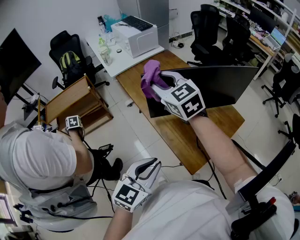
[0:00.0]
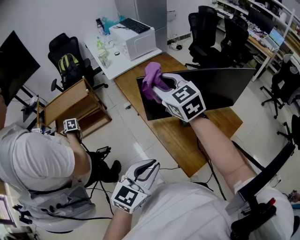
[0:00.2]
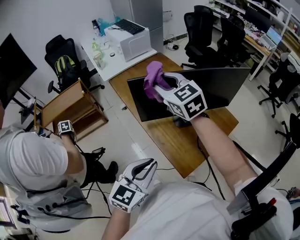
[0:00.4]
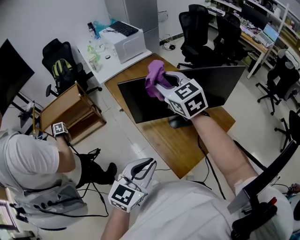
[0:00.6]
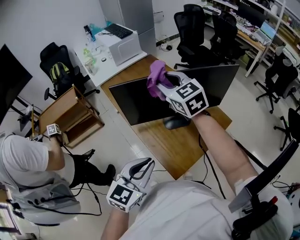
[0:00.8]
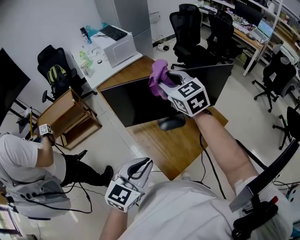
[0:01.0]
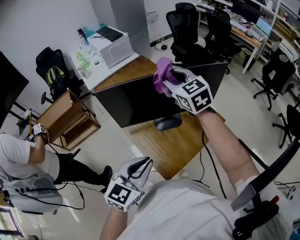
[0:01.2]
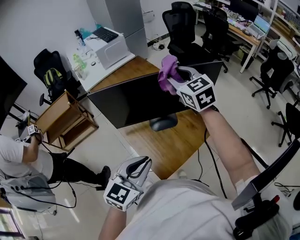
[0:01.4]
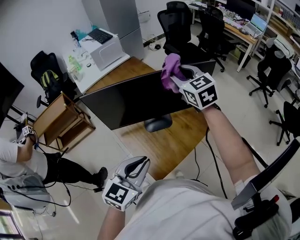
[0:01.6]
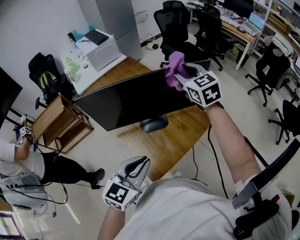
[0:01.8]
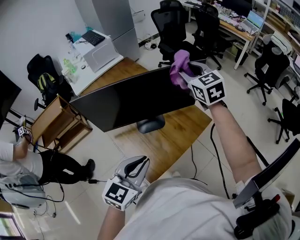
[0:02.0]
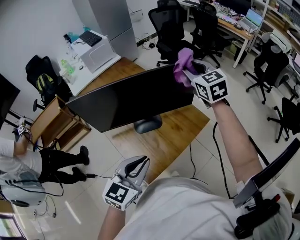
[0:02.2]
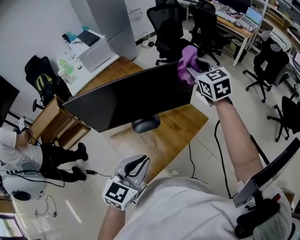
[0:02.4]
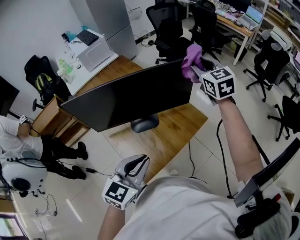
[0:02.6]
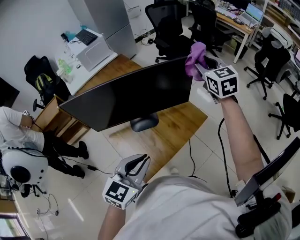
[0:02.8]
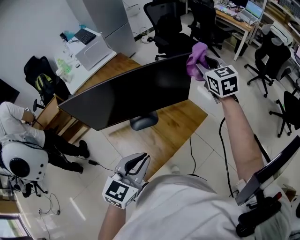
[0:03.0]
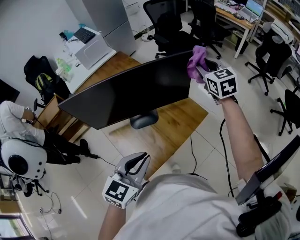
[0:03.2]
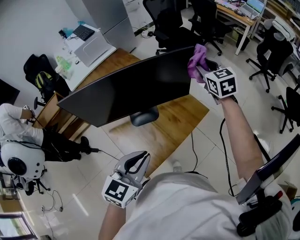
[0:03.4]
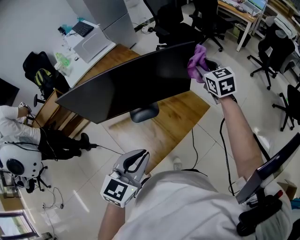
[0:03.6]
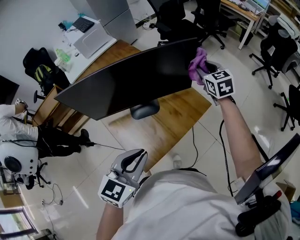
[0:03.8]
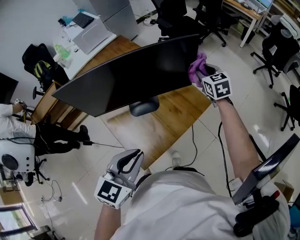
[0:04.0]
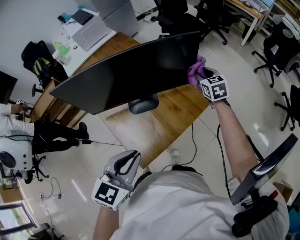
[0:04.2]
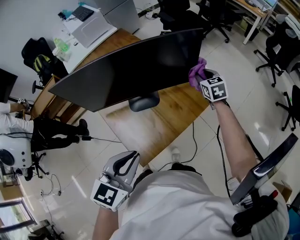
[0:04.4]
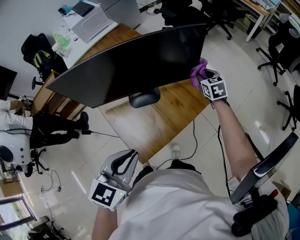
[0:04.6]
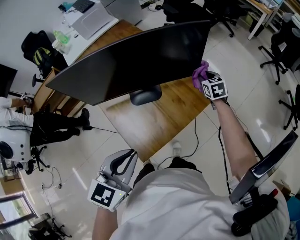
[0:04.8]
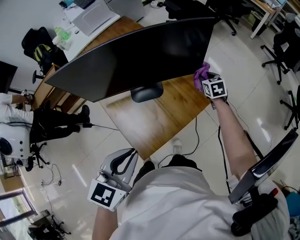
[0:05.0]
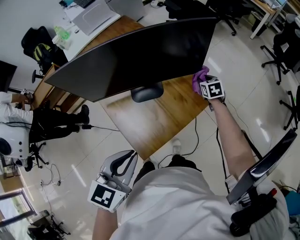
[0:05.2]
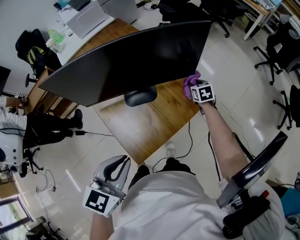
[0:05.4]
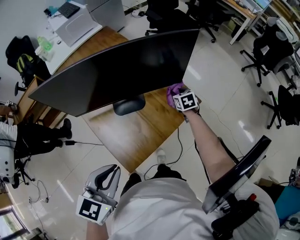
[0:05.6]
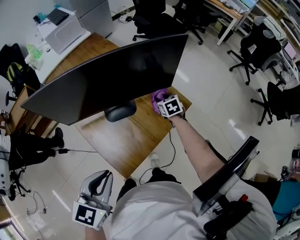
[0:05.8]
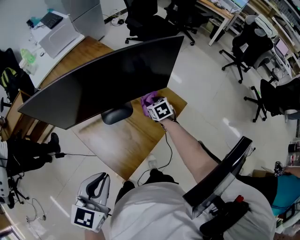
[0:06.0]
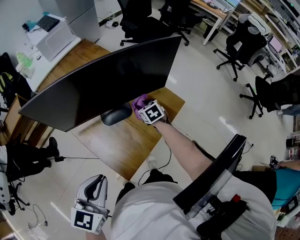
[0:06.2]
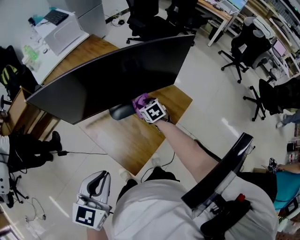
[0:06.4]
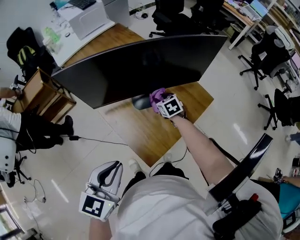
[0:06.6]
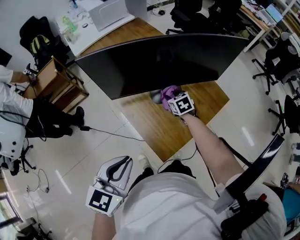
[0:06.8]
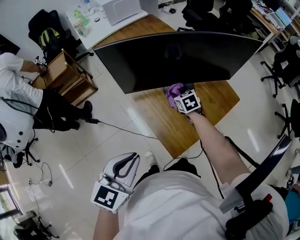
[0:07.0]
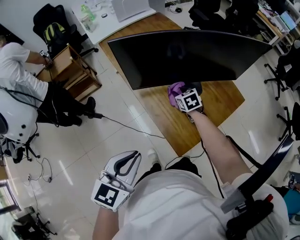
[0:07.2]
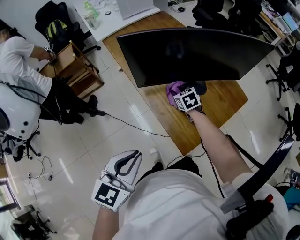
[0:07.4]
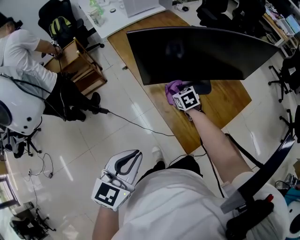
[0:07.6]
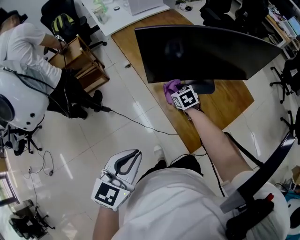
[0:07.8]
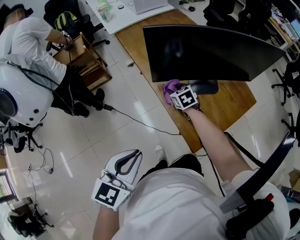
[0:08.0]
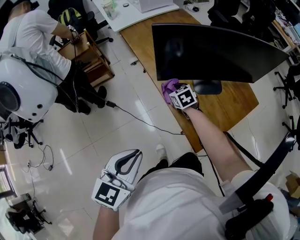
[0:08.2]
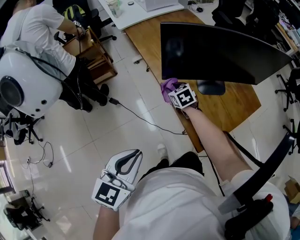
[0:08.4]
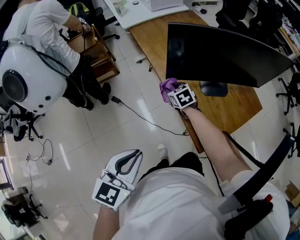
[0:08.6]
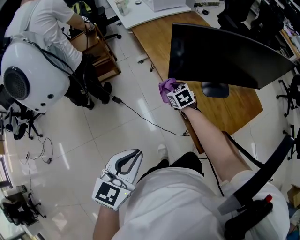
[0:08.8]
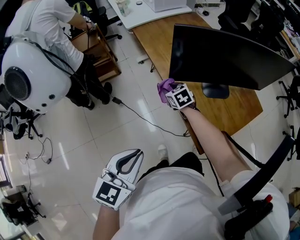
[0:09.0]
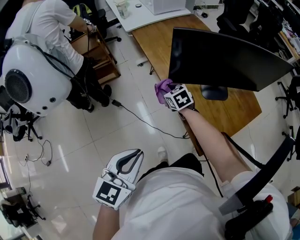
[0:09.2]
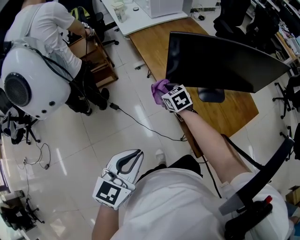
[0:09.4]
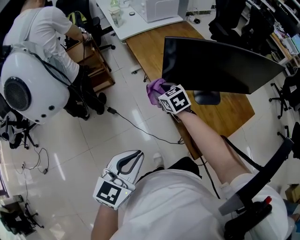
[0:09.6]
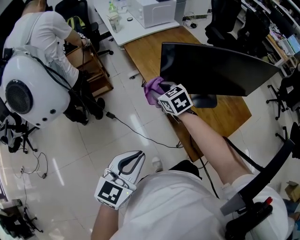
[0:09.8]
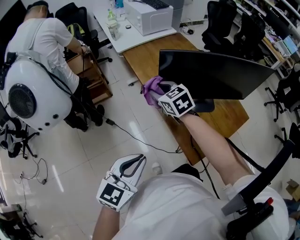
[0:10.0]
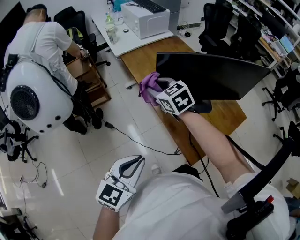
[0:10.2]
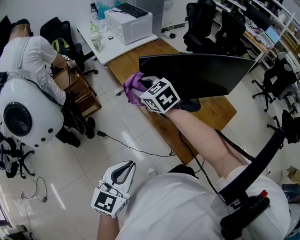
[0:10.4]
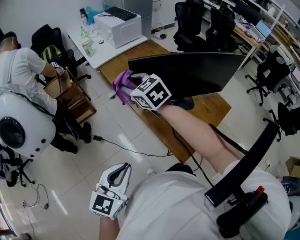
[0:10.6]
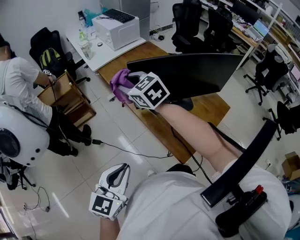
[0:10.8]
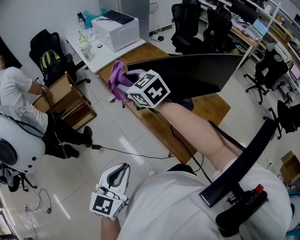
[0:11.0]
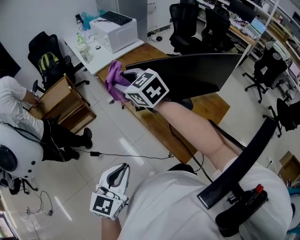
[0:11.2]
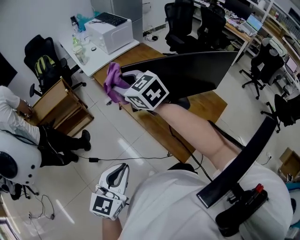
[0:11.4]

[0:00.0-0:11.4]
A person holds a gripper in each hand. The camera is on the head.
0:00.0 to 0:01.4: The right gripper travels to the right by roughly 25 cm, while the left gripper heads to the right, covering roughly 15 cm.
0:01.4 to 0:02.8: The left gripper goes some 10 cm to the right, while the right gripper heads to the right, covering approximately 25 cm.
0:02.8 to 0:04.2: The right gripper shifts about 20 cm downward.
0:04.2 to 0:05.6: The right gripper heads downward, covering some 20 cm, and changes its angle by some 20 degrees.
0:05.6 to 0:07.2: The left gripper moves to the left, approximately 15 cm; the right gripper travels to the left by approximately 30 cm.
0:07.2 to 0:08.6: The left gripper heads to the left, covering some 10 cm. Meanwhile the right gripper goes some 20 cm to the left.
0:08.6 to 0:10.0: The right gripper is displaced upward by roughly 20 cm.
0:10.0 to 0:11.4: The right gripper goes approximately 15 cm upward.

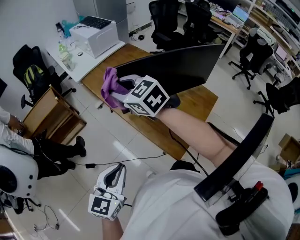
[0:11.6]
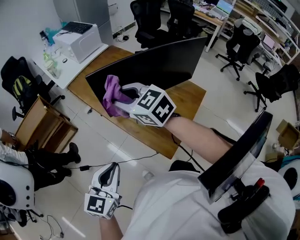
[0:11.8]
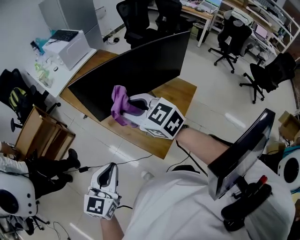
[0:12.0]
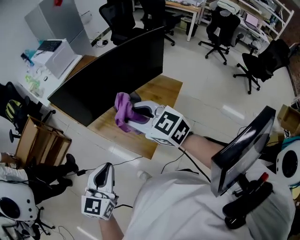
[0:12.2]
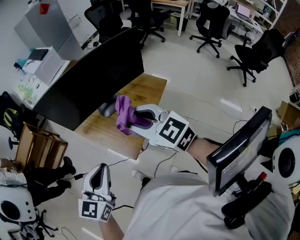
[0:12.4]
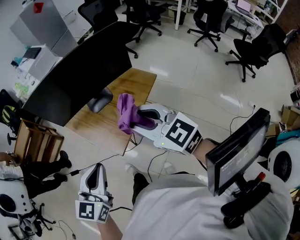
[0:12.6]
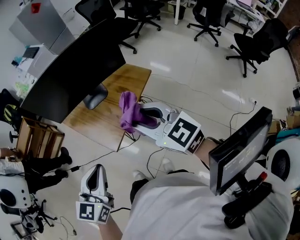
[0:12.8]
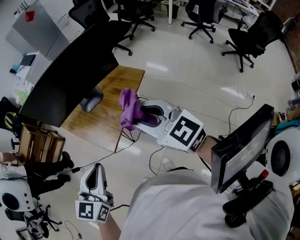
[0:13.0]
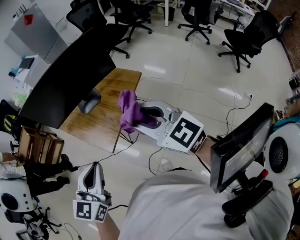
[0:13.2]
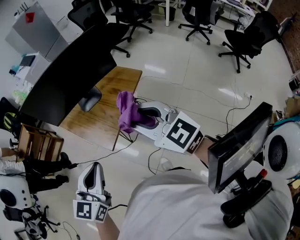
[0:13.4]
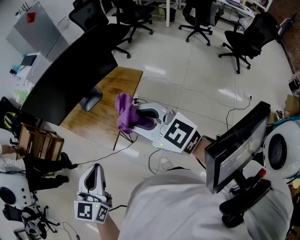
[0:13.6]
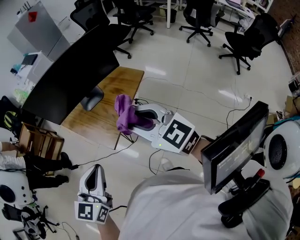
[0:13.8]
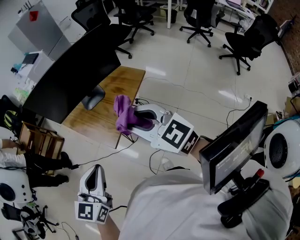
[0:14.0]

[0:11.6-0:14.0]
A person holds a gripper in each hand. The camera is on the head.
0:11.6 to 0:12.8: The right gripper heads to the right and backward, covering approximately 50 cm. Meanwhile the left gripper moves to the right, about 25 cm.
0:12.8 to 0:14.0: The grippers make only small movements.

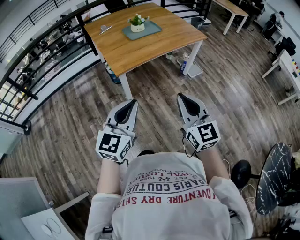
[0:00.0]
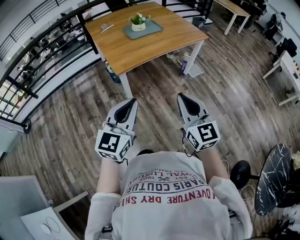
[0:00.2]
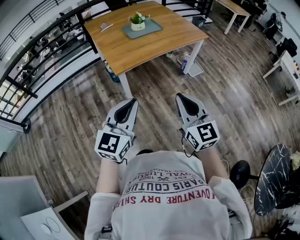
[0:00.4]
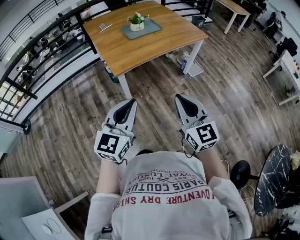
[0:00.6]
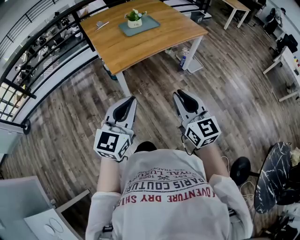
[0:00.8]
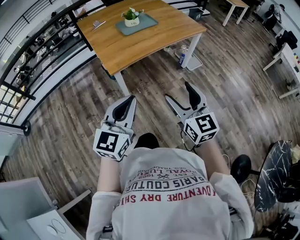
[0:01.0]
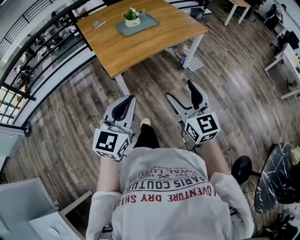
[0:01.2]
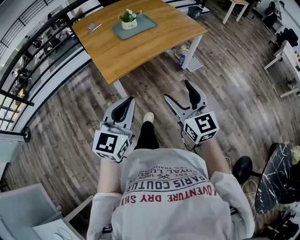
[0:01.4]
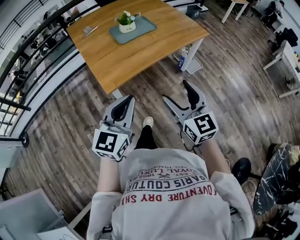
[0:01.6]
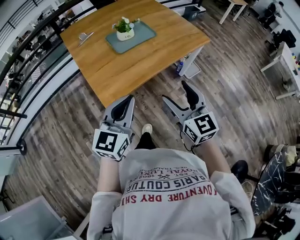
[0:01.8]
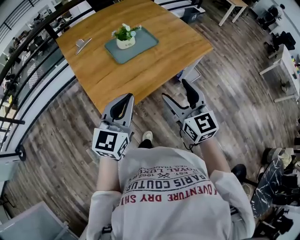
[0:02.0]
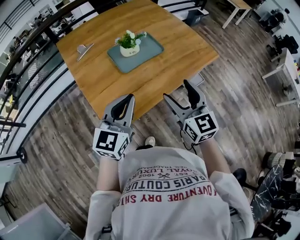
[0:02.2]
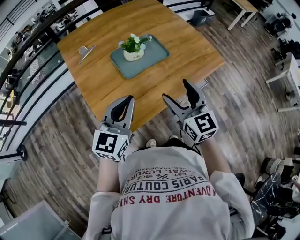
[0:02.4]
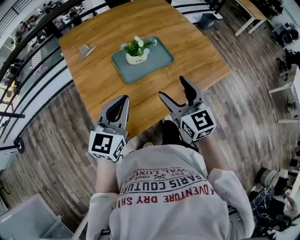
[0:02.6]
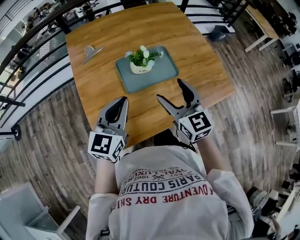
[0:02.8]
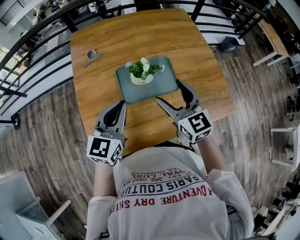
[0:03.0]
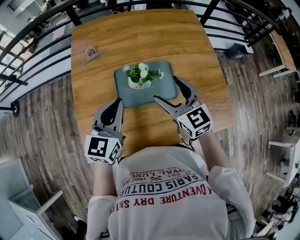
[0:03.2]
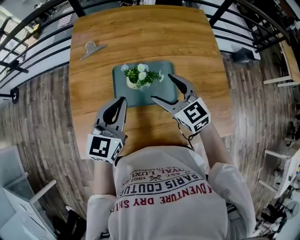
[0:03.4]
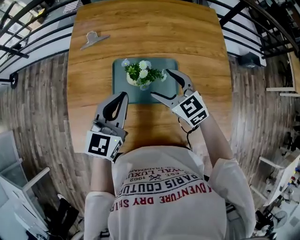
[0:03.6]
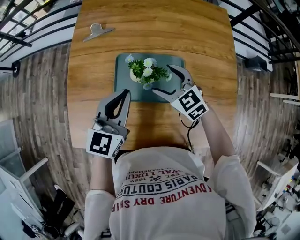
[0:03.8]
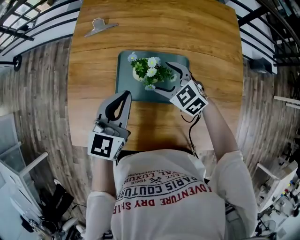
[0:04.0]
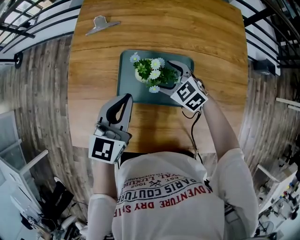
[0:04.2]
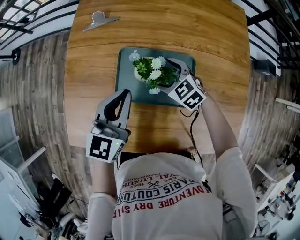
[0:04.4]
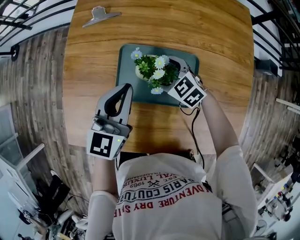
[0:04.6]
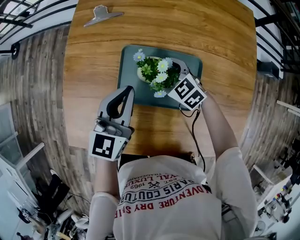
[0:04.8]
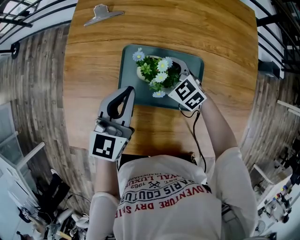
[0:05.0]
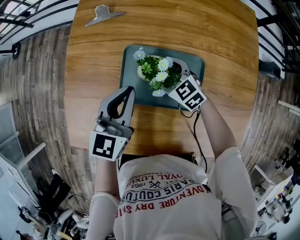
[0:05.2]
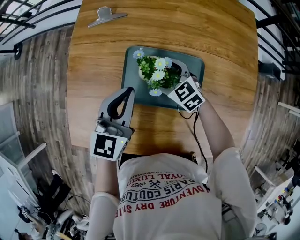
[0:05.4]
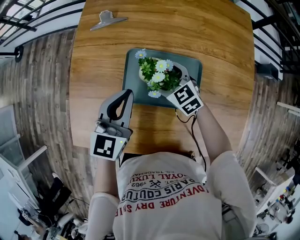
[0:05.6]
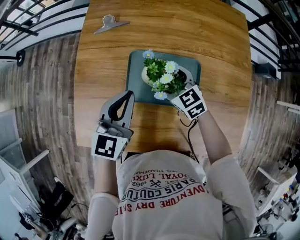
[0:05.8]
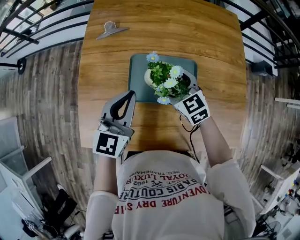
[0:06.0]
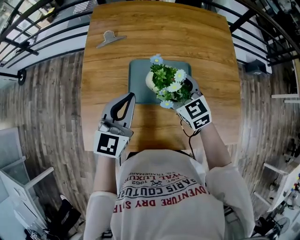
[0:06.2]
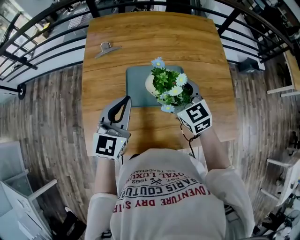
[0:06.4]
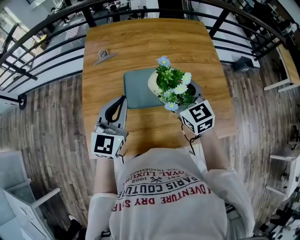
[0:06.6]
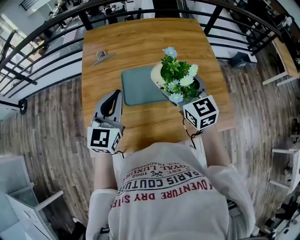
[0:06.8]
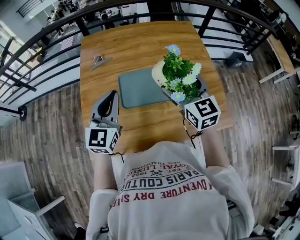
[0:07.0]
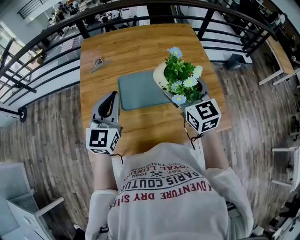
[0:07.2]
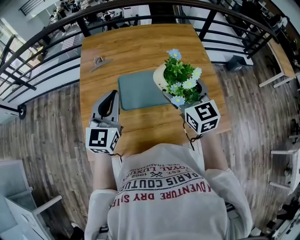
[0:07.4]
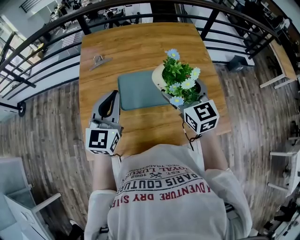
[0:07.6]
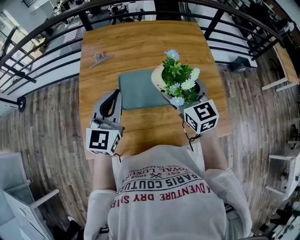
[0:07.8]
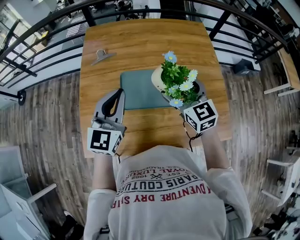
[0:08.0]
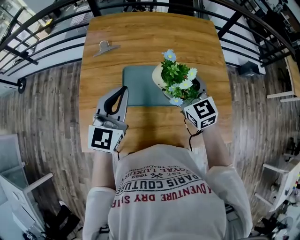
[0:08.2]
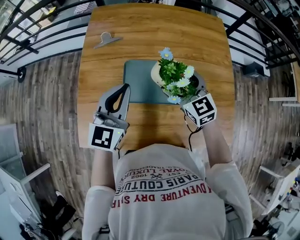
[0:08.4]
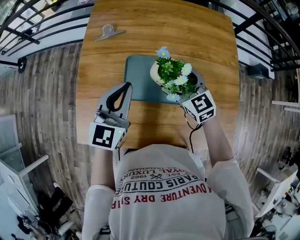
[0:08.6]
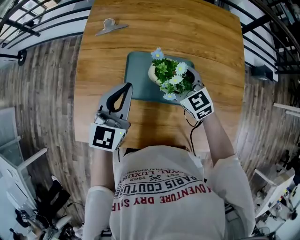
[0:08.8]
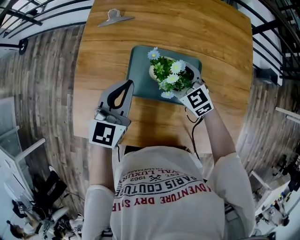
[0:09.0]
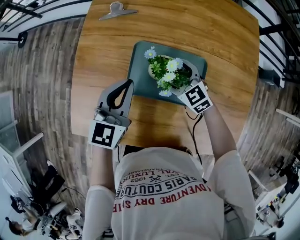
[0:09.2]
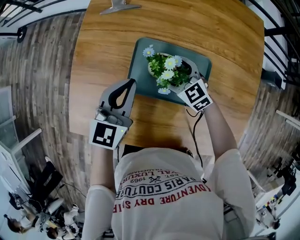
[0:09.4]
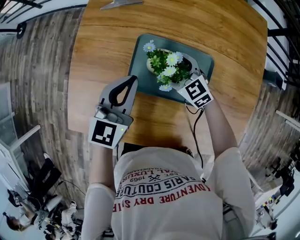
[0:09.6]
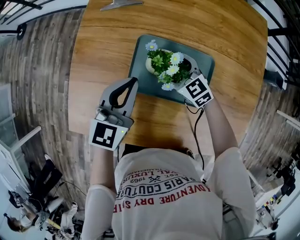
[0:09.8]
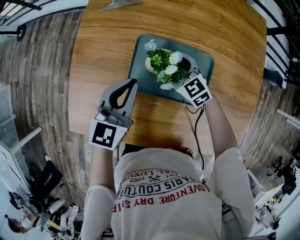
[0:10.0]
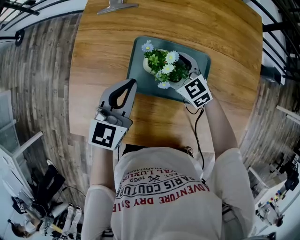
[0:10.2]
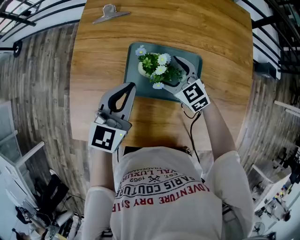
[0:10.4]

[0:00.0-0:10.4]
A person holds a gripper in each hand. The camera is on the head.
0:00.0 to 0:01.4: The two grippers go about 15 cm forward. The right gripper opens its fingers.
0:01.4 to 0:03.0: The two grippers travel together, forward, some 60 cm. The right gripper swivels some 30 degrees. Meanwhile the left gripper changes its angle by about 20 degrees.
0:03.0 to 0:04.4: The right gripper is displaced downward by roughly 25 cm, and changes its angle by some 50 degrees. Meanwhile the left gripper changes place by some 15 cm, and turns by some 20 degrees.
0:04.4 to 0:06.0: The right gripper moves upward, some 10 cm.
0:06.0 to 0:07.4: The left gripper moves upward, roughly 10 cm. Meanwhile the right gripper shifts roughly 25 cm upward, to the right and backward, and changes its angle by some 30 degrees.
0:07.4 to 0:09.0: The right gripper travels downward and forward by roughly 25 cm, and changes its angle by approximately 40 degrees, while the left gripper travels downward and forward by approximately 15 cm.
